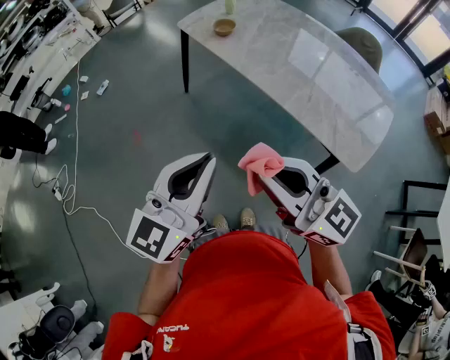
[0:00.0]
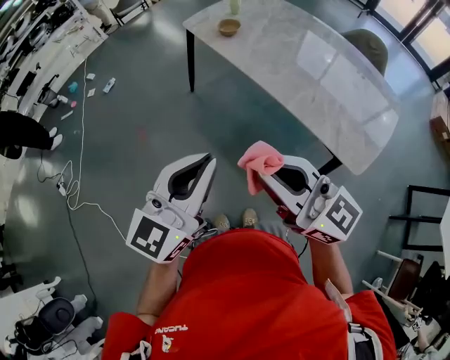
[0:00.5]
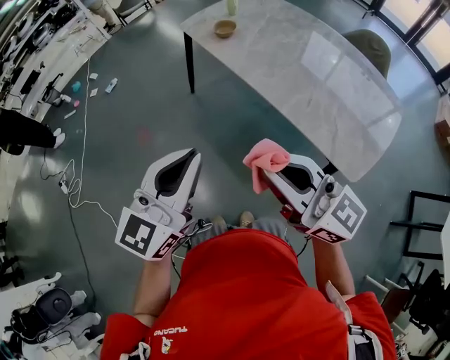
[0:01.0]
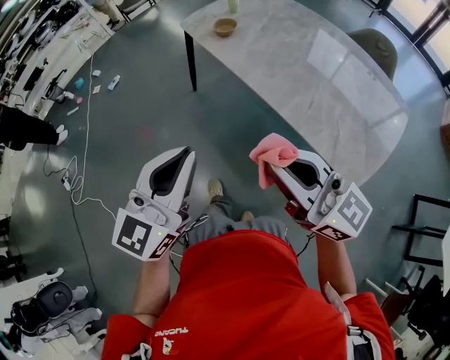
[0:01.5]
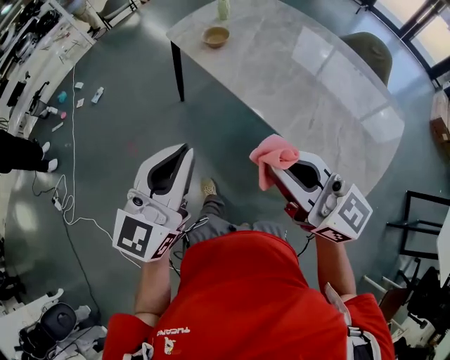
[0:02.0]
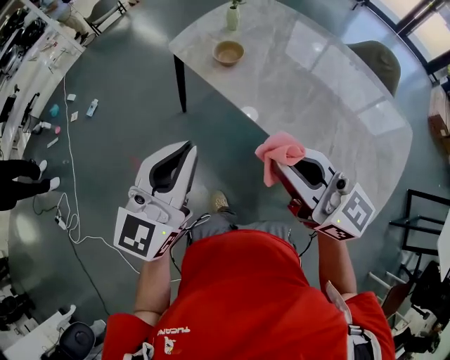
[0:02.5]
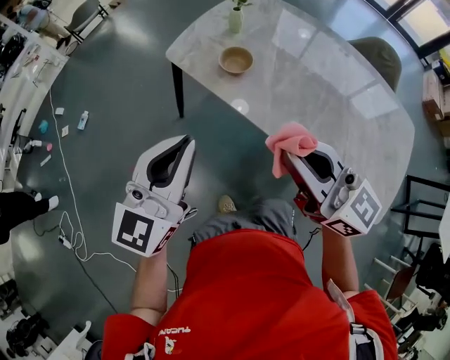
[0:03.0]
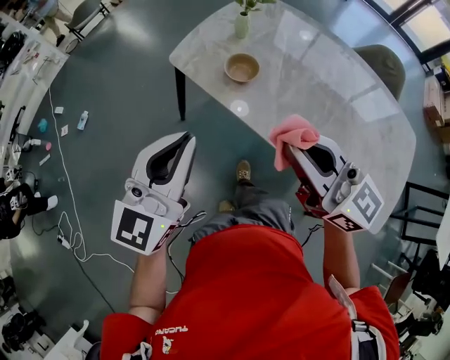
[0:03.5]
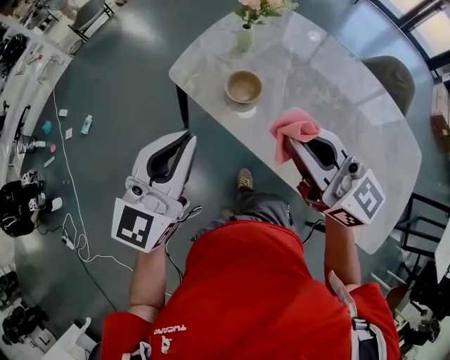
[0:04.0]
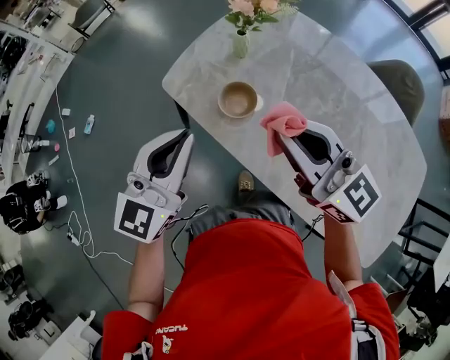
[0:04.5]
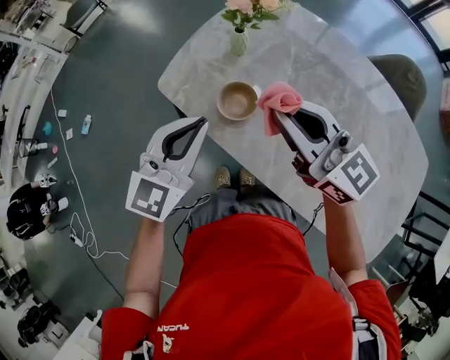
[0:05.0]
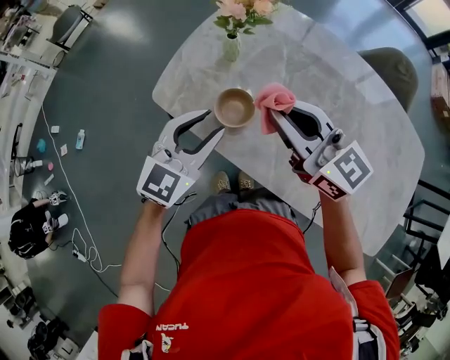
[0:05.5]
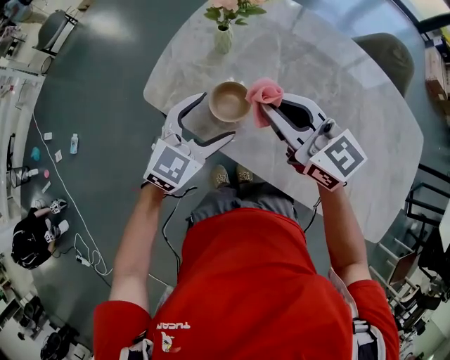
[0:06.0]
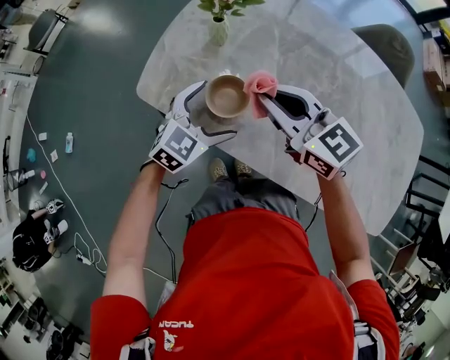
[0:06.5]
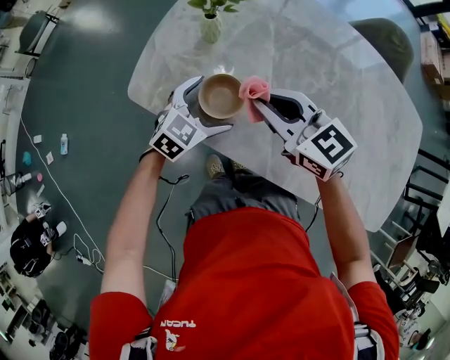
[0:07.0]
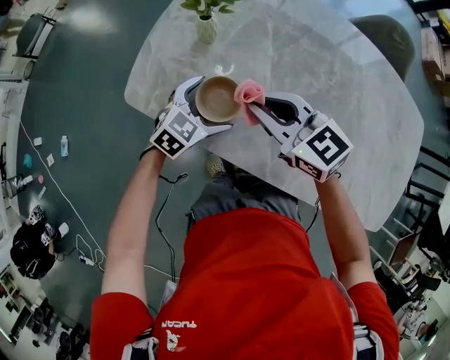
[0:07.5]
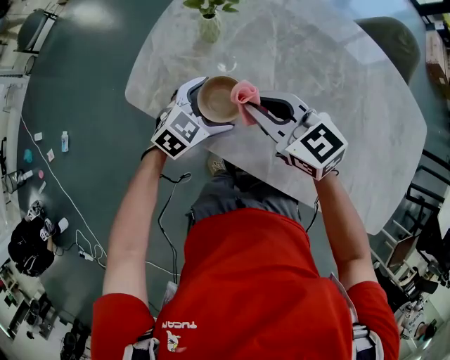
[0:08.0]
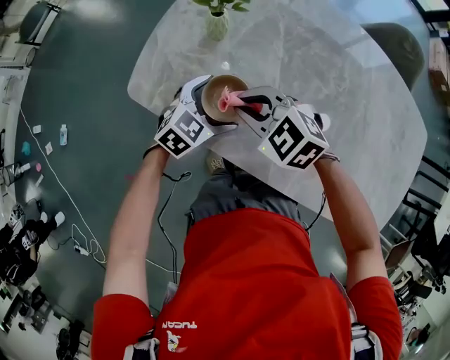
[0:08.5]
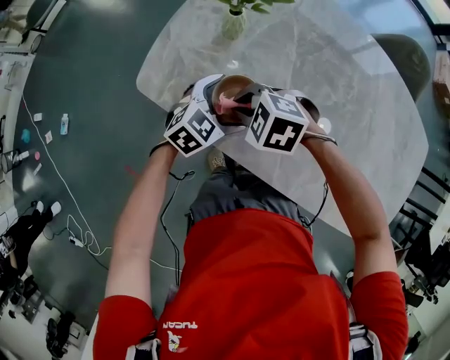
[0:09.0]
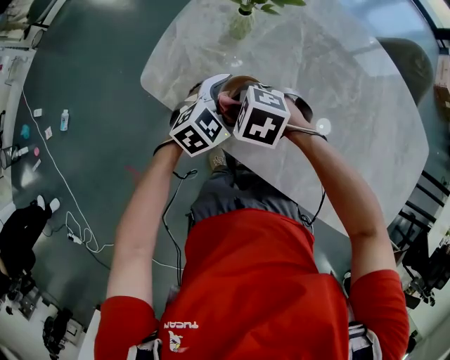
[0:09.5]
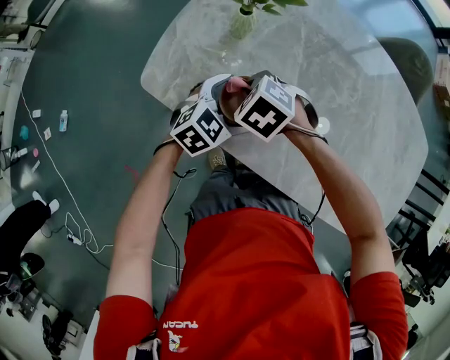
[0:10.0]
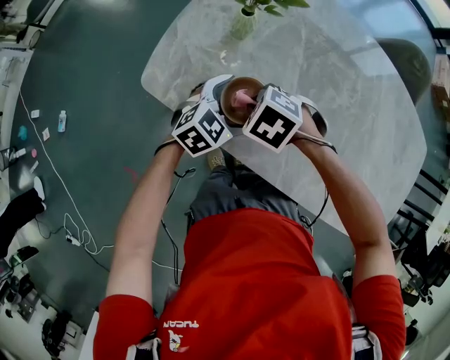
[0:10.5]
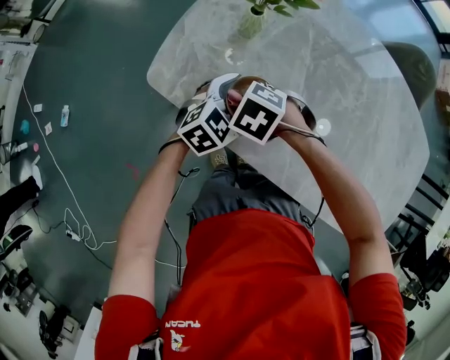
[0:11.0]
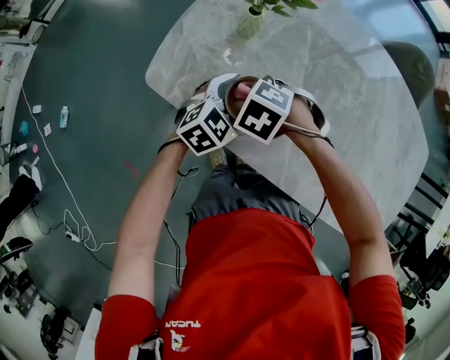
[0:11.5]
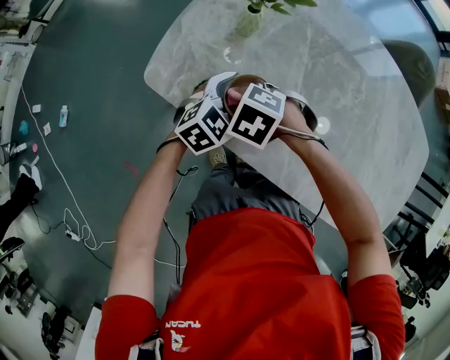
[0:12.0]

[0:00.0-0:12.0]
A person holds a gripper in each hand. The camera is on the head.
0:00.0 to 0:02.0: The right gripper heads forward and to the right, covering some 15 cm; the left gripper travels forward by approximately 15 cm.
0:02.0 to 0:04.0: The two grippers go about 35 cm forward.
0:04.0 to 0:06.0: The left gripper goes about 25 cm downward, forward and to the right, turns by about 30 degrees, and opens up. Meanwhile the right gripper travels forward and downward by roughly 20 cm.
0:06.0 to 0:08.0: The two grippers go about 10 cm downward. The left gripper turns by approximately 20 degrees.
0:08.0 to 0:10.0: The right gripper travels downward by approximately 10 cm, and points its fingers about 50 degrees further downward.
0:10.0 to 0:12.0: There are only small adjustments of the grippers.

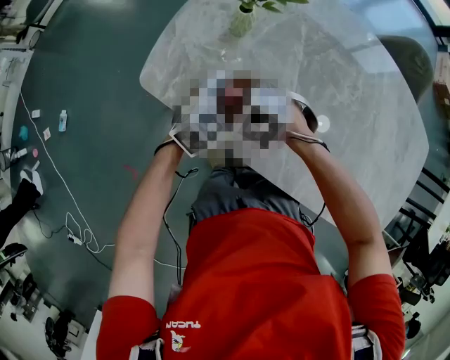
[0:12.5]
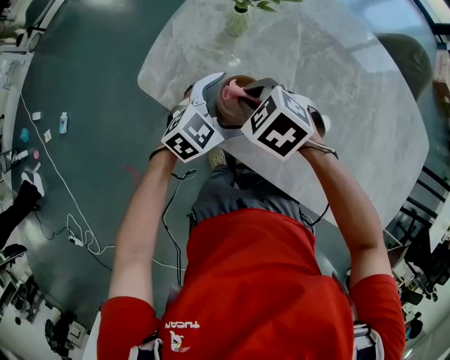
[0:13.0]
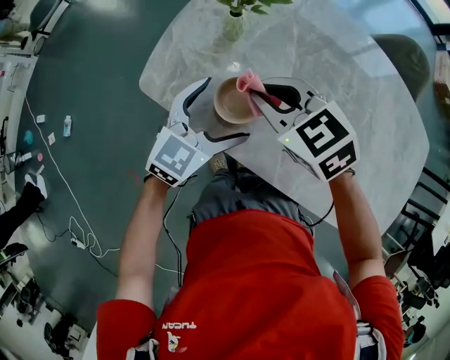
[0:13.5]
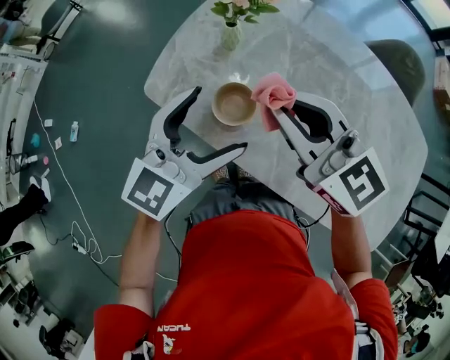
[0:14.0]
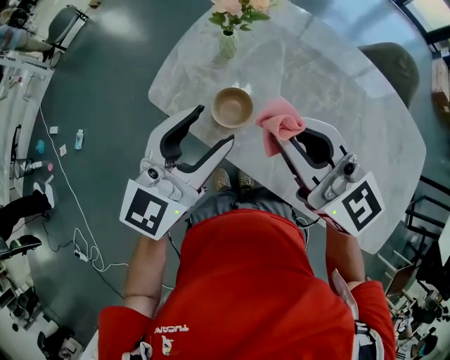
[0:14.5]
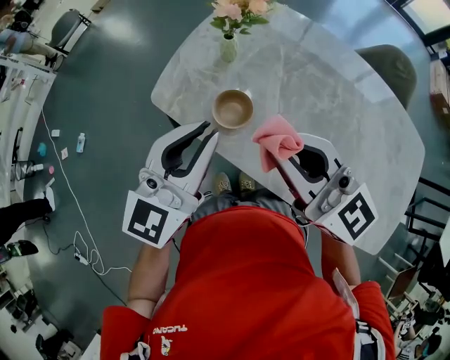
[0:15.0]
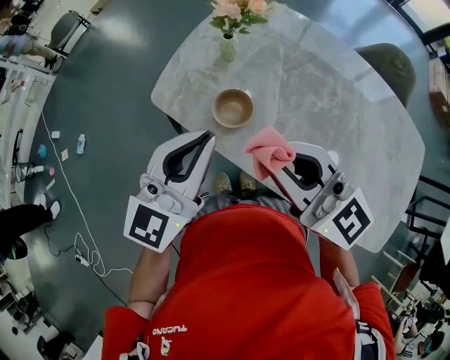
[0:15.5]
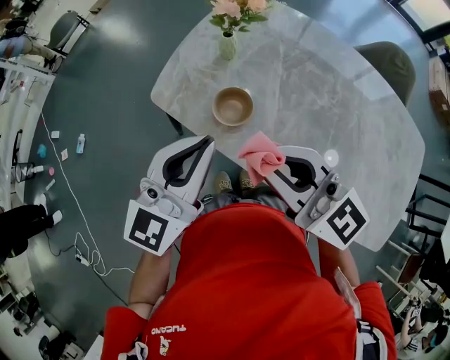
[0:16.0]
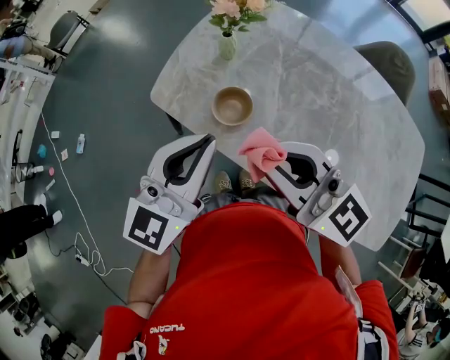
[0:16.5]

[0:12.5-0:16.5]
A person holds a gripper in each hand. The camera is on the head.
0:12.5 to 0:14.5: Both grippers move upward, roughly 30 cm. The left gripper tips its fingers upward by approximately 30 degrees, and closes its fingers; the right gripper tilts its fingers approximately 70 degrees upward.
0:14.5 to 0:16.5: The left gripper closes up, while the right gripper heads backward, covering about 5 cm.

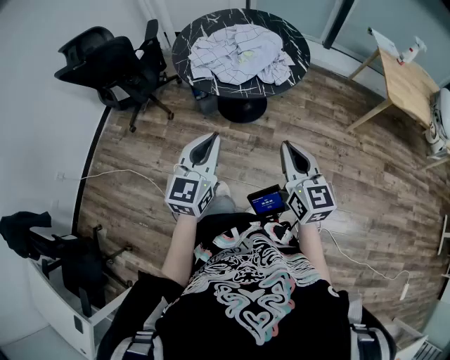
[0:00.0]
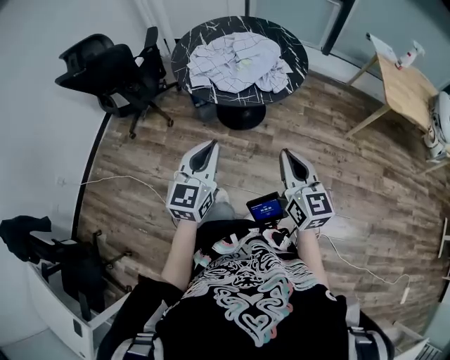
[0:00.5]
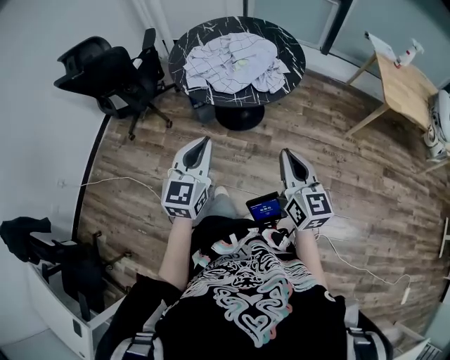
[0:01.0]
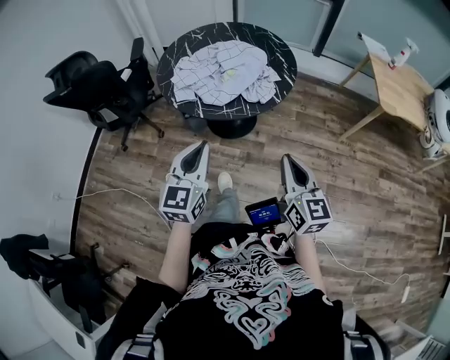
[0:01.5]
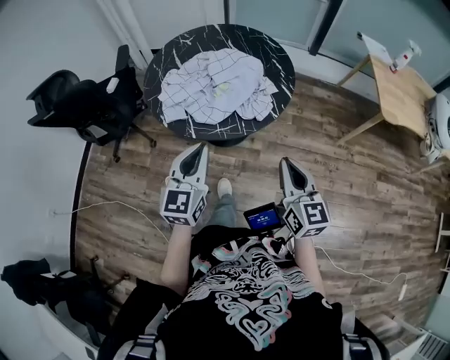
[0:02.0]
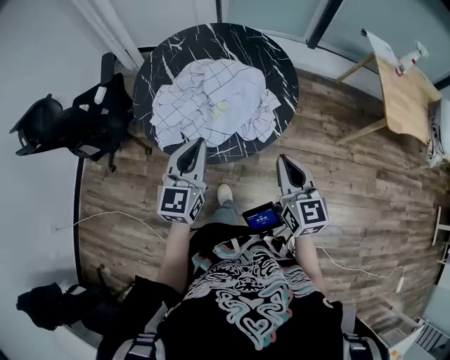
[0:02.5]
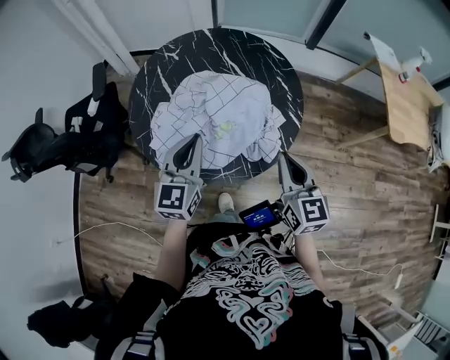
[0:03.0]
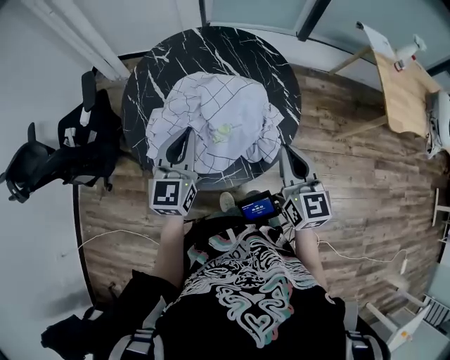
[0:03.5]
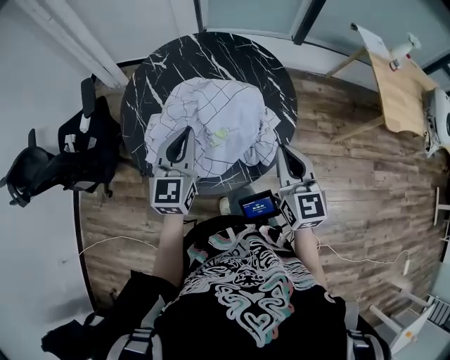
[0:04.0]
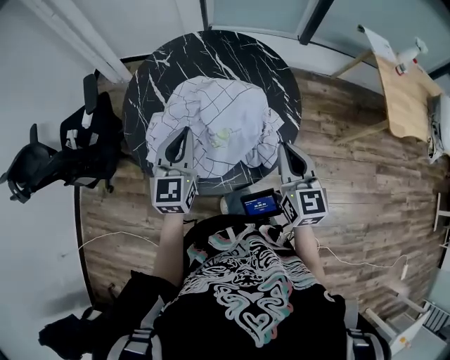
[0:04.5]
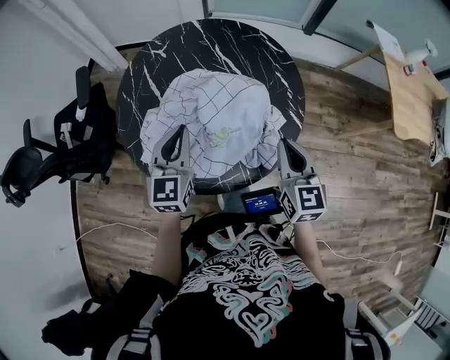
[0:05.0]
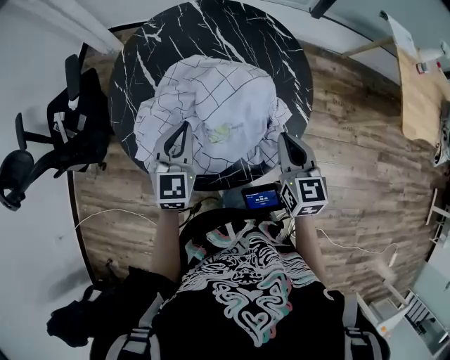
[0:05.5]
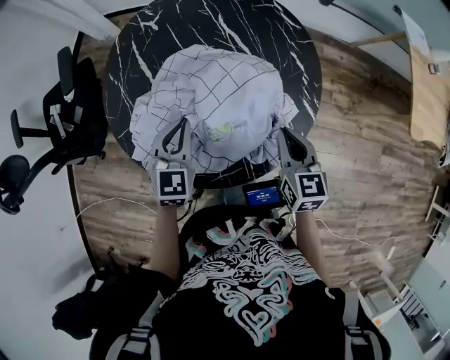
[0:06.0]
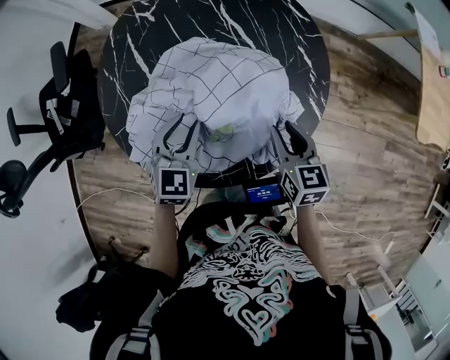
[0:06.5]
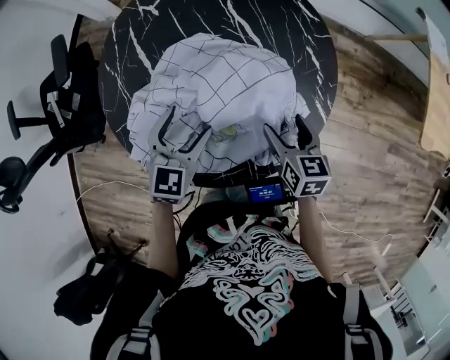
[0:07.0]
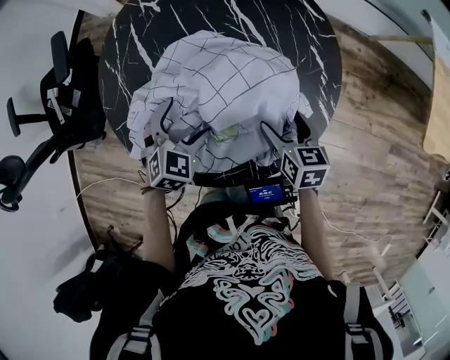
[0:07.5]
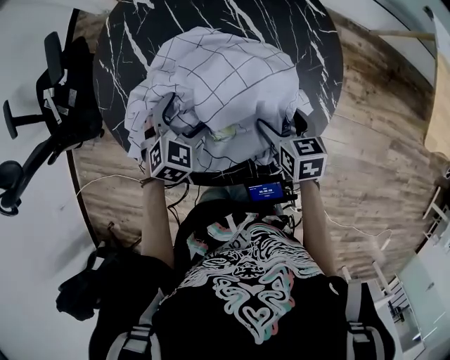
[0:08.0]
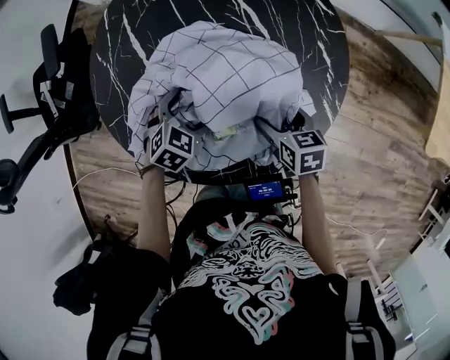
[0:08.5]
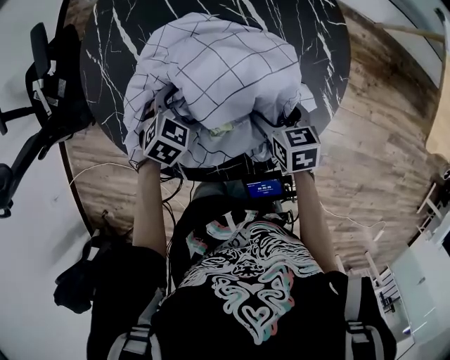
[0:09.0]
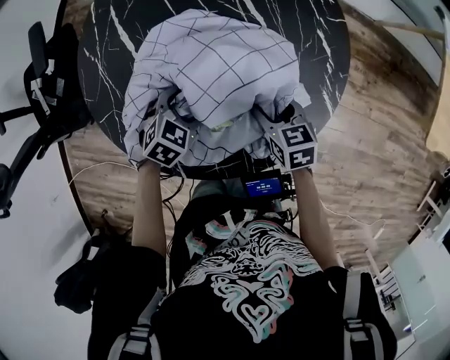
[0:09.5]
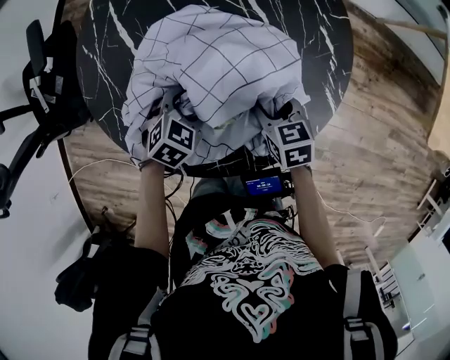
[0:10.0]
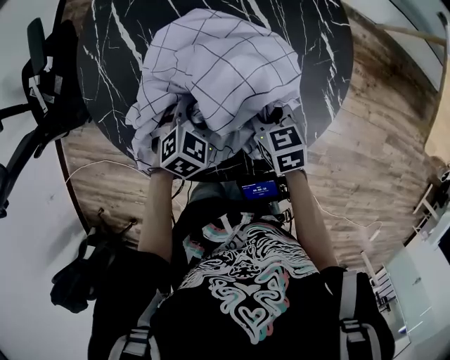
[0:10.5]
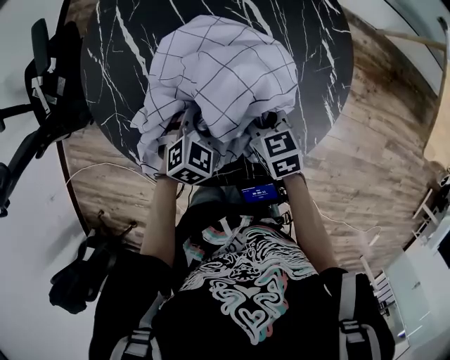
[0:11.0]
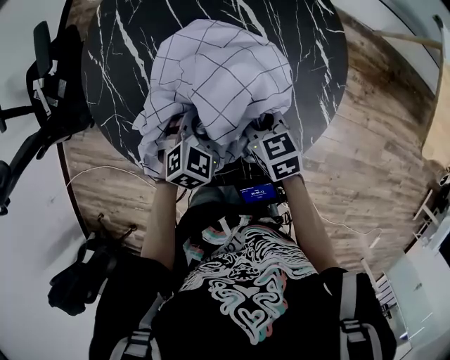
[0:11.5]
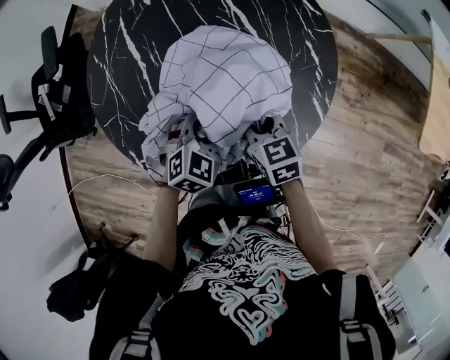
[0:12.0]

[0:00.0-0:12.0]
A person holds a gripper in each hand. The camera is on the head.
0:00.0 to 0:02.0: The left gripper travels forward by roughly 20 cm, while the right gripper shifts approximately 15 cm forward and to the right.
0:02.0 to 0:04.0: The two grippers go approximately 25 cm forward.
0:04.0 to 0:06.0: Both grippers move downward and forward, some 15 cm. The right gripper swivels some 20 degrees, while the left gripper changes its angle by approximately 20 degrees.
0:06.0 to 0:08.0: Both grippers travel together downward, approximately 10 cm. The left gripper rotates some 30 degrees, and opens up. The right gripper swivels roughly 30 degrees, and opens up.
0:08.0 to 0:10.0: The right gripper closes up. Meanwhile the left gripper moves approximately 5 cm, and closes up.
0:10.0 to 0:12.0: The right gripper is displaced upward by some 5 cm, and closes up. The left gripper goes some 10 cm upward and to the right.
